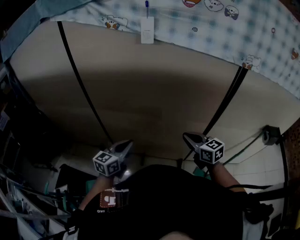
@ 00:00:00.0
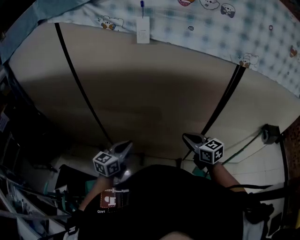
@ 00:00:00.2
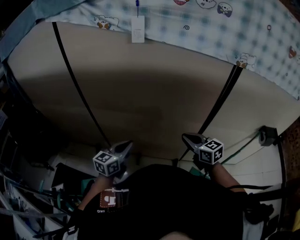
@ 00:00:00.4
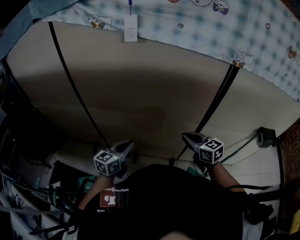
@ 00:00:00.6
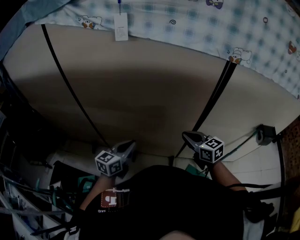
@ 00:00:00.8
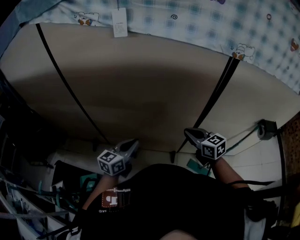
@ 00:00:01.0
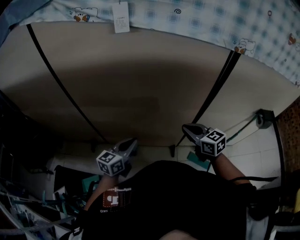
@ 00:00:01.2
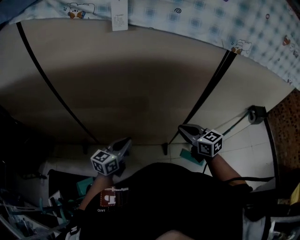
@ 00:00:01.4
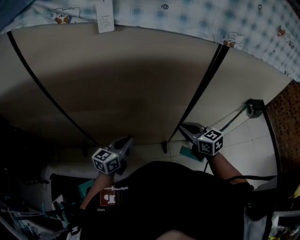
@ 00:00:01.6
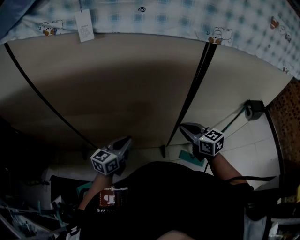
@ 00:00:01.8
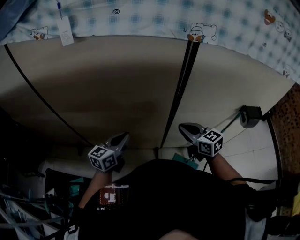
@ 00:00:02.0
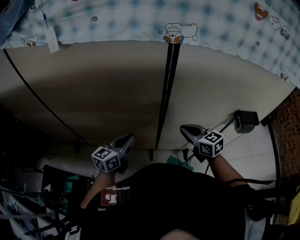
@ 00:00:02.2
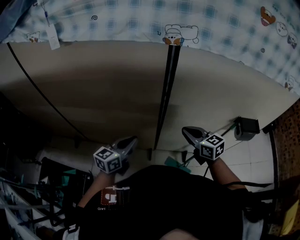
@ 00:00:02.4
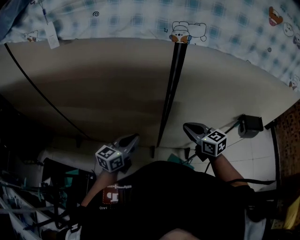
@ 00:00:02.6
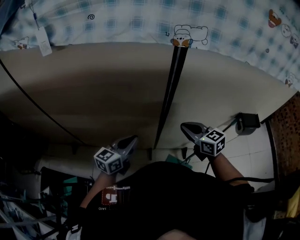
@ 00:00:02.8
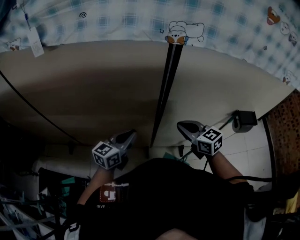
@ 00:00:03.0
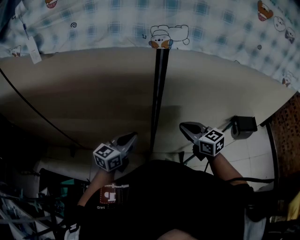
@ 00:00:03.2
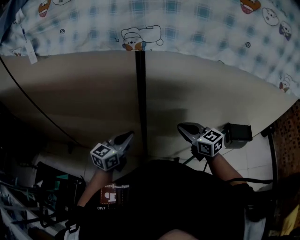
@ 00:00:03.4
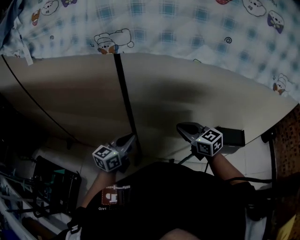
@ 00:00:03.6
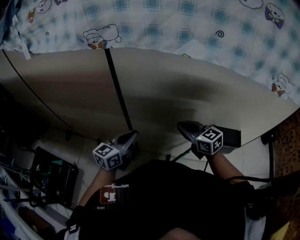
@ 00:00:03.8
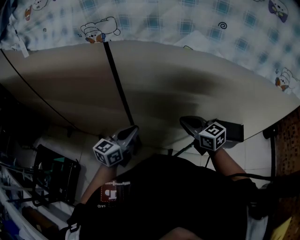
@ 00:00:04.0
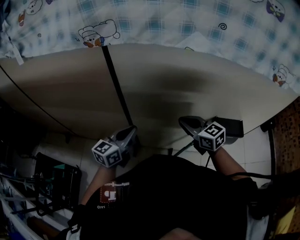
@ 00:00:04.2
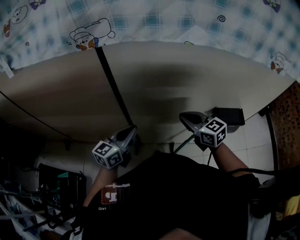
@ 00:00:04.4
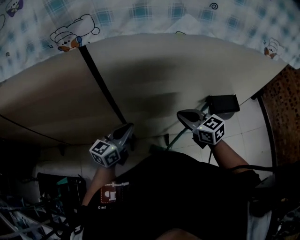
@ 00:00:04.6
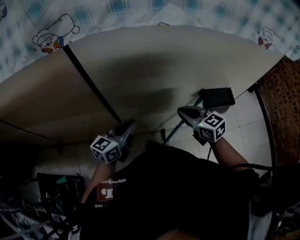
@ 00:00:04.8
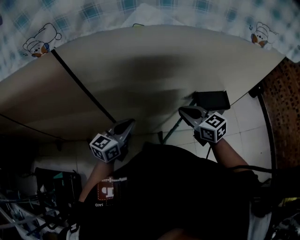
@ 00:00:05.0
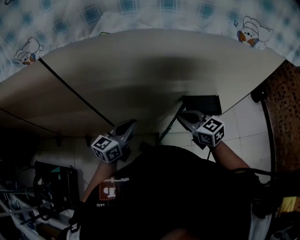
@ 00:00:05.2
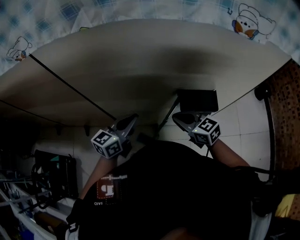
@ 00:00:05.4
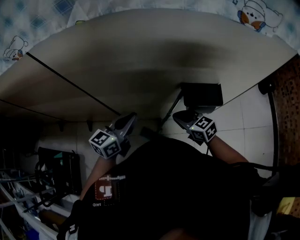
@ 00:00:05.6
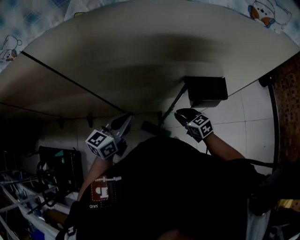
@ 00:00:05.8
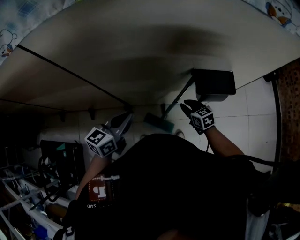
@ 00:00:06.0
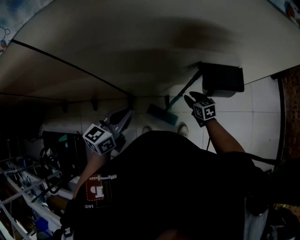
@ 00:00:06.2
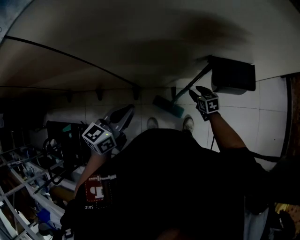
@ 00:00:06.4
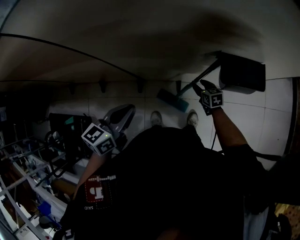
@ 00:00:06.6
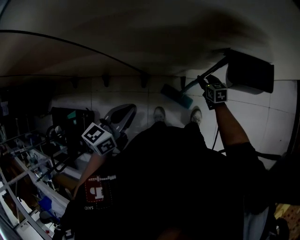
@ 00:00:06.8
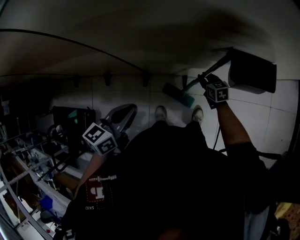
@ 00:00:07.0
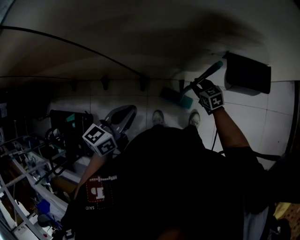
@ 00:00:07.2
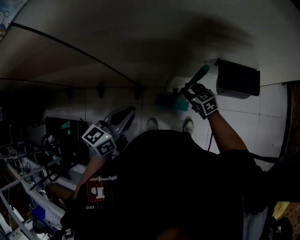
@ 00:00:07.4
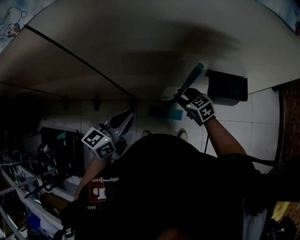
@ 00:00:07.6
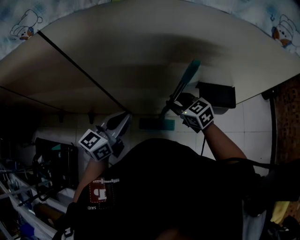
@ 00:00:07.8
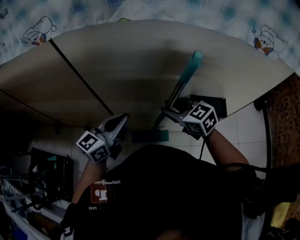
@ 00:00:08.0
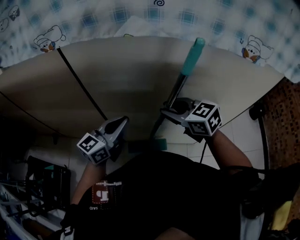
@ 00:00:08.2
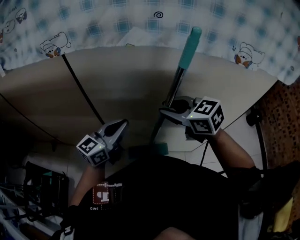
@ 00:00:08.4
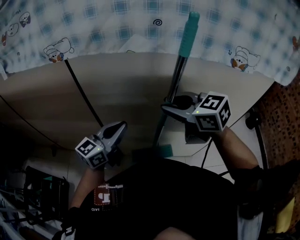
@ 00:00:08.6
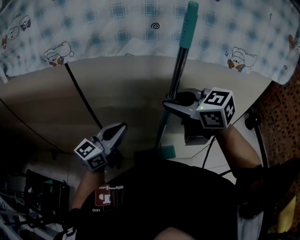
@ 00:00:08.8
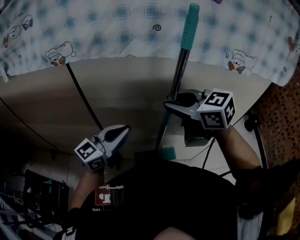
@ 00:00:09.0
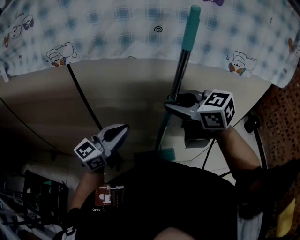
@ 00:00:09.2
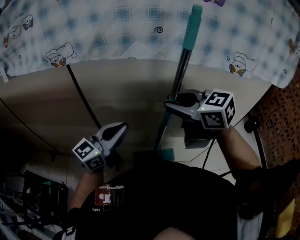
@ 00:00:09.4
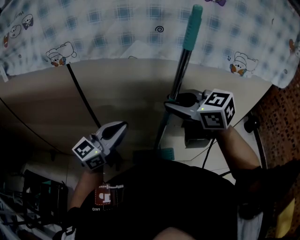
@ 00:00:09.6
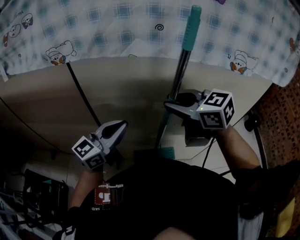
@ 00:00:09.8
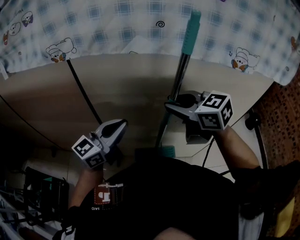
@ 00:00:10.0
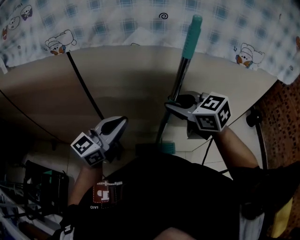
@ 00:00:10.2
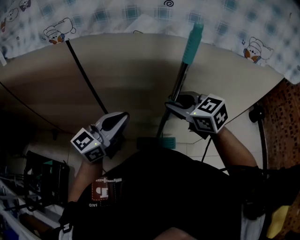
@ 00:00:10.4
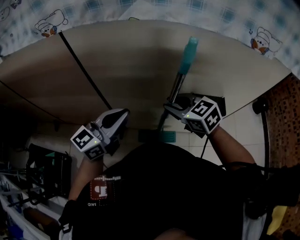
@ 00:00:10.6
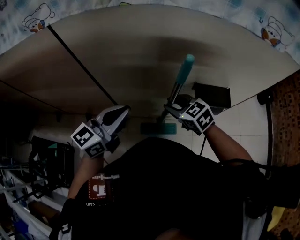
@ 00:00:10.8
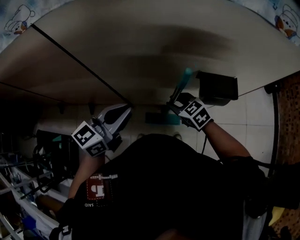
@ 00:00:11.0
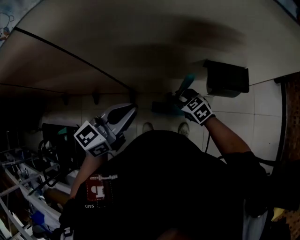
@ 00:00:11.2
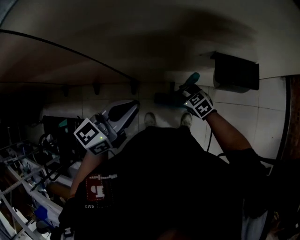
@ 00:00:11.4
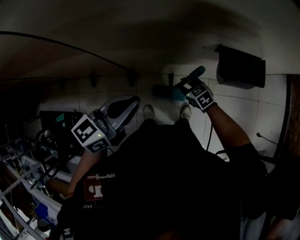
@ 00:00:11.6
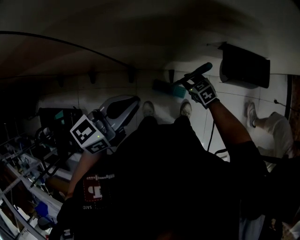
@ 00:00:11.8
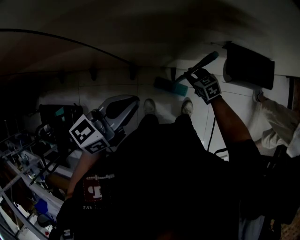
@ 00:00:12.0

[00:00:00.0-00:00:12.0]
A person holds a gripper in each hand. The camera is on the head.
00:00:00.0 to 00:00:01.6: The grippers both shift to the right by about 10 cm.
00:00:01.6 to 00:00:03.0: Both grippers move to the right, roughly 25 cm.
00:00:03.0 to 00:00:04.4: The grippers both shift to the right by roughly 20 cm.
00:00:04.4 to 00:00:06.0: The right gripper travels downward and to the right by about 30 cm, changes its angle by some 20 degrees, and opens its fingers. The left gripper shifts roughly 15 cm to the right and downward.
00:00:06.0 to 00:00:07.6: The right gripper travels to the left by approximately 10 cm, goes downward and returns, some 15 cm each way, and opens and closes again.
00:00:07.6 to 00:00:09.0: The right gripper moves upward, roughly 40 cm, and rotates roughly 20 degrees; the left gripper shifts about 20 cm upward, and rotates some 30 degrees.
00:00:09.0 to 00:00:10.4: The right gripper goes roughly 10 cm downward.
00:00:10.4 to 00:00:12.0: The left gripper heads downward, covering some 15 cm, and changes its angle by about 30 degrees. The right gripper shifts about 50 cm downward, and swivels approximately 20 degrees.

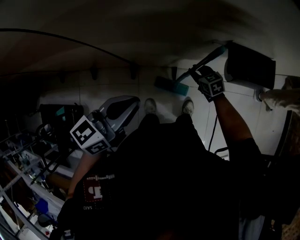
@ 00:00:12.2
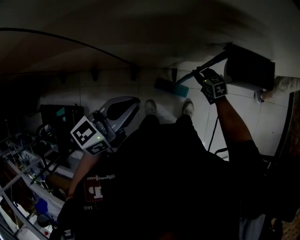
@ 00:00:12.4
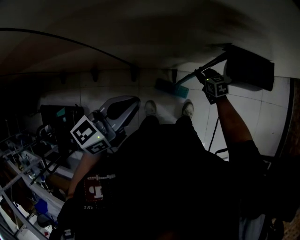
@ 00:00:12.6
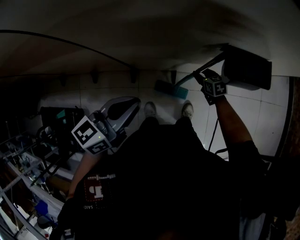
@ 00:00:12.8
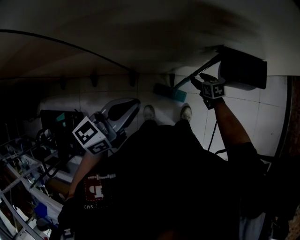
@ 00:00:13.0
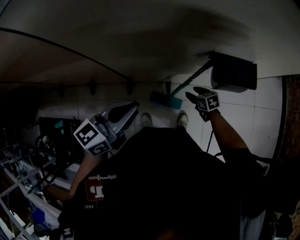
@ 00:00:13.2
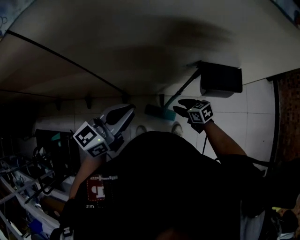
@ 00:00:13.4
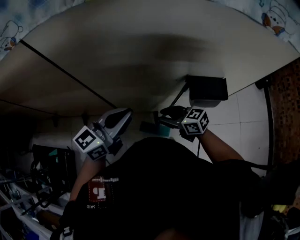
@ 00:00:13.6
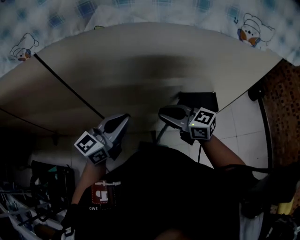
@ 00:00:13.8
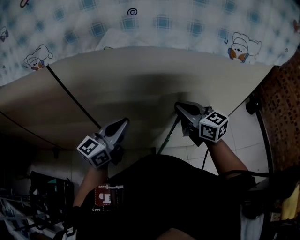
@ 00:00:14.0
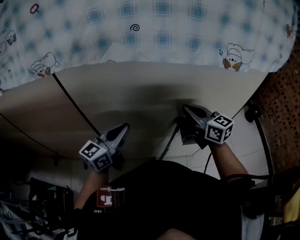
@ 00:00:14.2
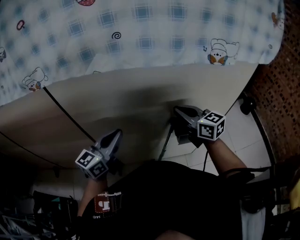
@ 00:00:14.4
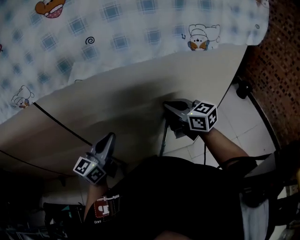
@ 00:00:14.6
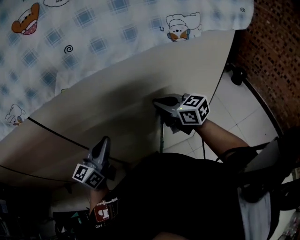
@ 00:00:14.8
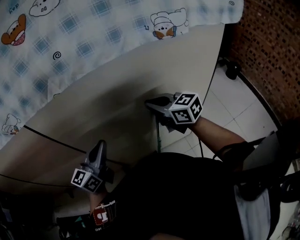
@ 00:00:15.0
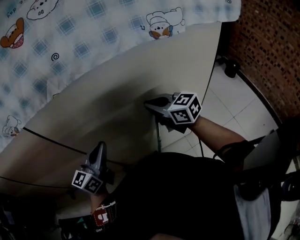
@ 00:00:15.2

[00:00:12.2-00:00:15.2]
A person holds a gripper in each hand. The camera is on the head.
00:00:12.2 to 00:00:13.8: The right gripper heads upward, covering approximately 40 cm, tips its fingers upward by approximately 30 degrees, and opens, then closes once more; the left gripper travels upward, forward and to the right by some 20 cm.
00:00:13.8 to 00:00:15.2: The right gripper is displaced to the right and upward by approximately 10 cm, and turns by about 20 degrees.

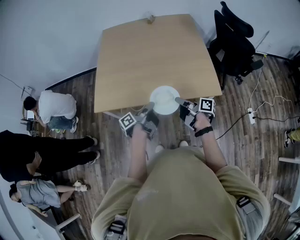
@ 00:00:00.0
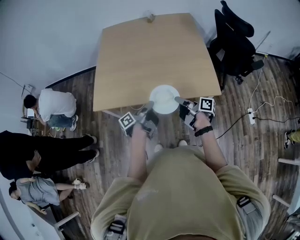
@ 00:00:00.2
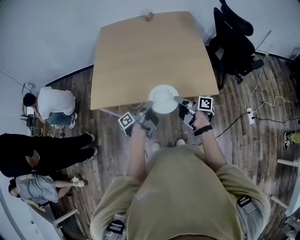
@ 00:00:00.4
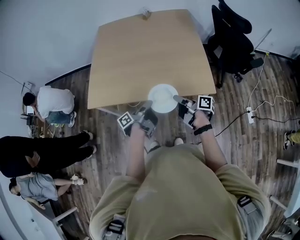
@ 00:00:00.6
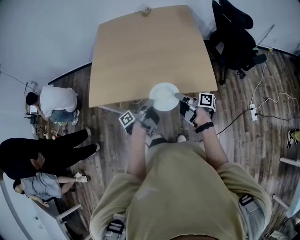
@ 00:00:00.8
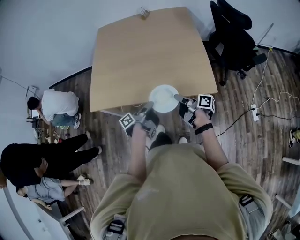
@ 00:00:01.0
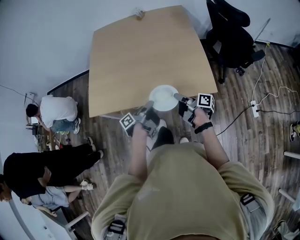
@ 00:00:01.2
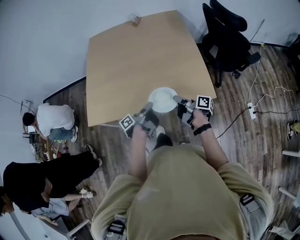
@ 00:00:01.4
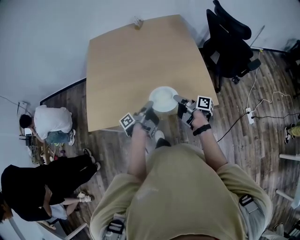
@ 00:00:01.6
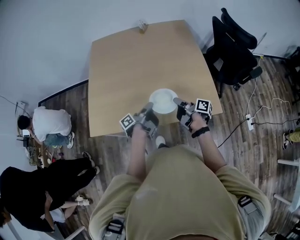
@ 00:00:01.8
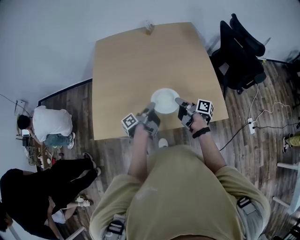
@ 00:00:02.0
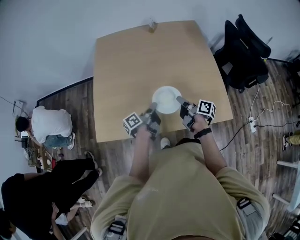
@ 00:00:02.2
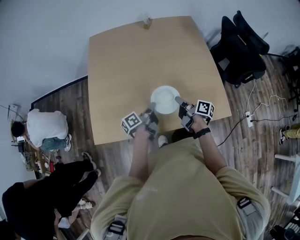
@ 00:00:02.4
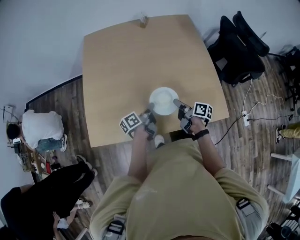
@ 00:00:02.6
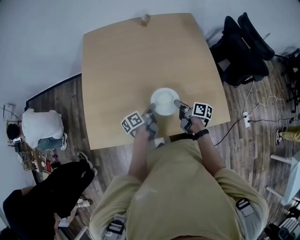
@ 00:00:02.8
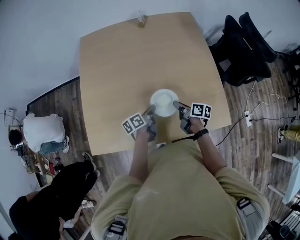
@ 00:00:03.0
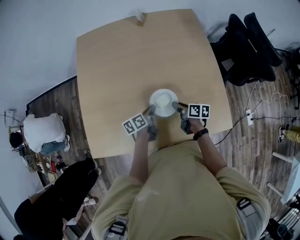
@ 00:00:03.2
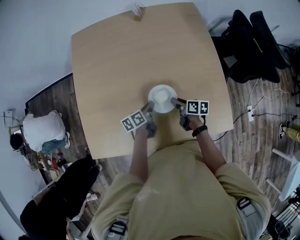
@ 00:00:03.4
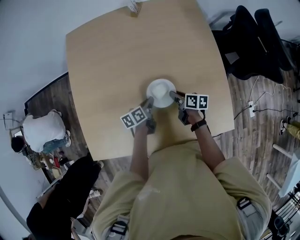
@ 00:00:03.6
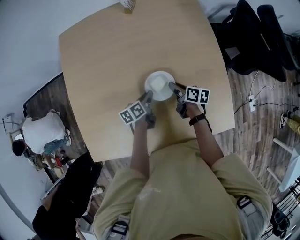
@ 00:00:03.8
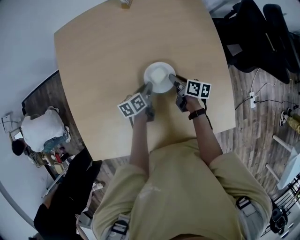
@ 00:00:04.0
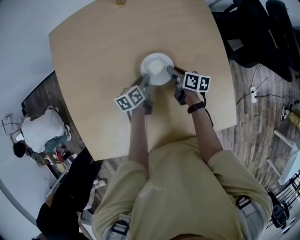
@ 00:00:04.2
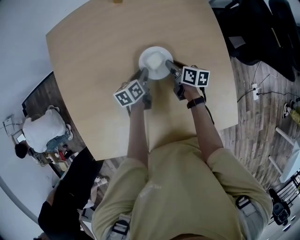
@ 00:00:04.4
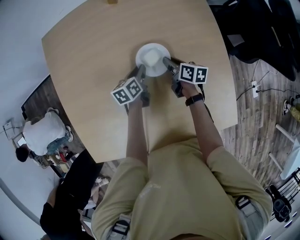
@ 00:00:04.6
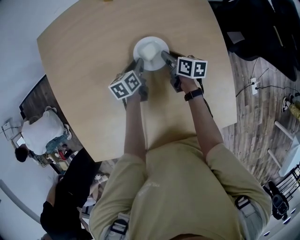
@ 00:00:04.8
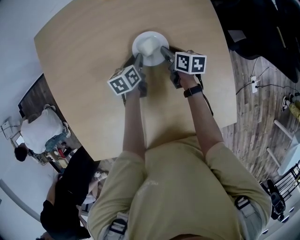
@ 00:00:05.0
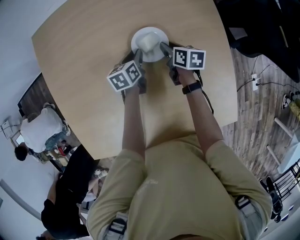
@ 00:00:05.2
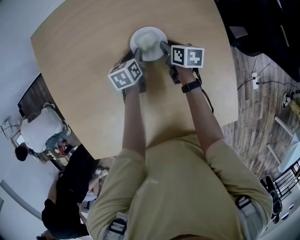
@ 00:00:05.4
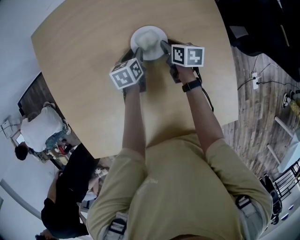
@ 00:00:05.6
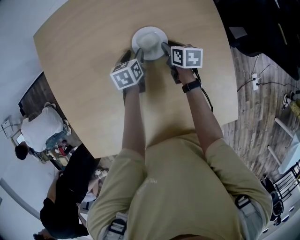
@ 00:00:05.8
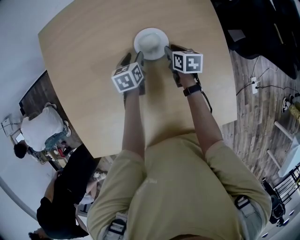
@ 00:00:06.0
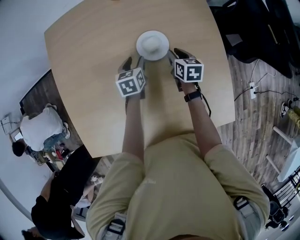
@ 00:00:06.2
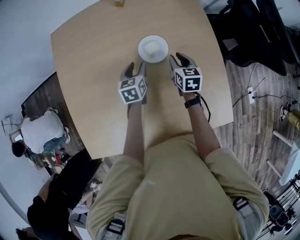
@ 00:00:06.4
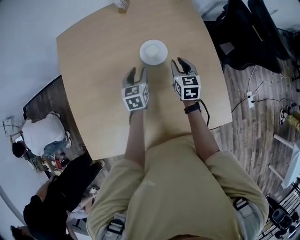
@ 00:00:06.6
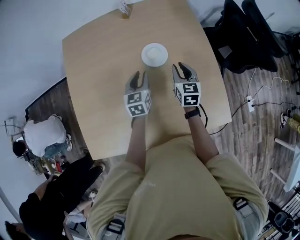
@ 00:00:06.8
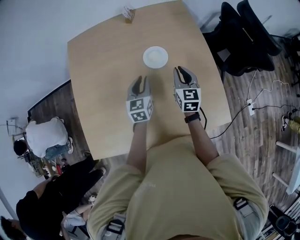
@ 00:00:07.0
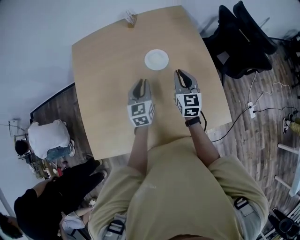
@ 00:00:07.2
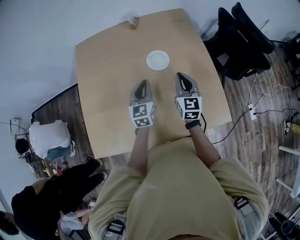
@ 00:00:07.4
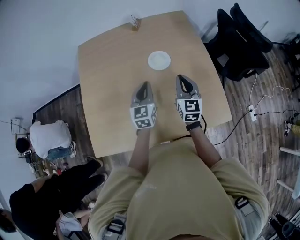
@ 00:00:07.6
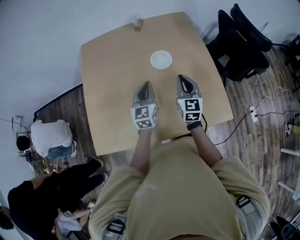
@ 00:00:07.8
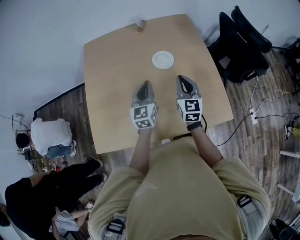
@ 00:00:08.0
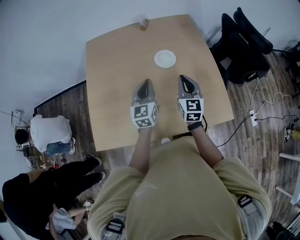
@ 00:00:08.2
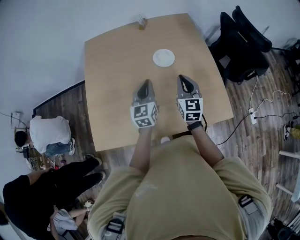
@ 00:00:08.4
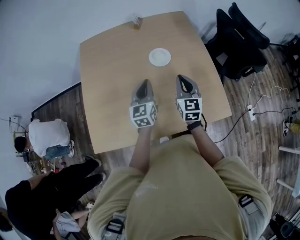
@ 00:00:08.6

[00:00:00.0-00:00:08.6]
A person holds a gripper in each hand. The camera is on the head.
00:00:00.0 to 00:00:01.4: The two grippers go some 10 cm to the right and forward.
00:00:01.4 to 00:00:02.8: Both grippers move forward and to the left, approximately 20 cm. The right gripper changes its angle by roughly 20 degrees. Meanwhile the left gripper rotates some 30 degrees.
00:00:02.8 to 00:00:04.4: The grippers both shift forward by some 30 cm. The left gripper rotates about 30 degrees.
00:00:04.4 to 00:00:05.8: The two grippers go some 5 cm forward. The left gripper opens its fingers.
00:00:05.8 to 00:00:07.2: The grippers both shift upward and backward by some 30 cm. The right gripper points its fingers some 30 degrees further upward. The left gripper angles its fingers upward, by roughly 30 degrees, and closes up.
00:00:07.2 to 00:00:08.6: Both grippers travel together backward, some 10 cm.
